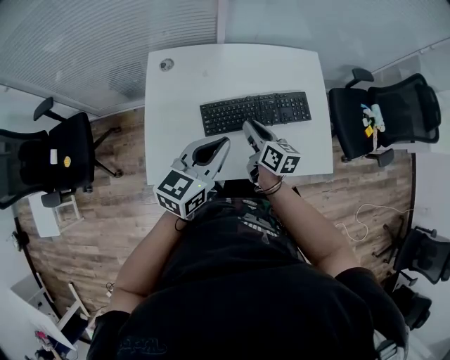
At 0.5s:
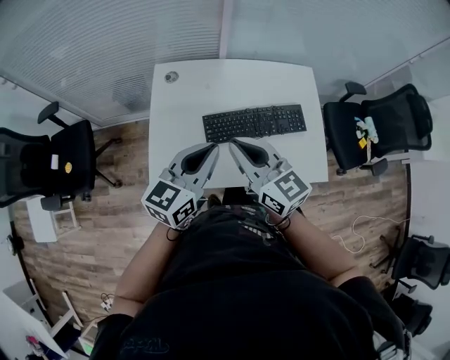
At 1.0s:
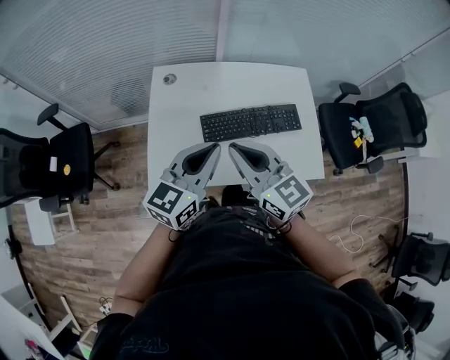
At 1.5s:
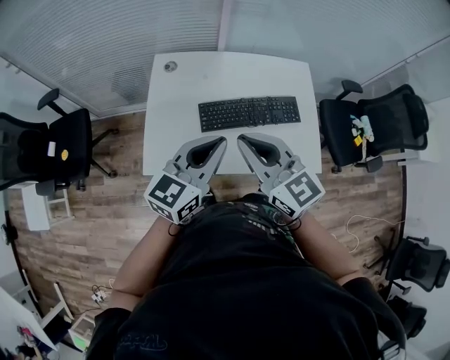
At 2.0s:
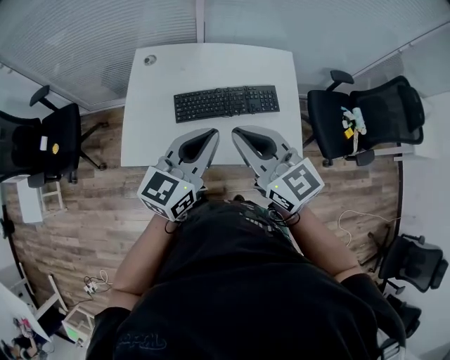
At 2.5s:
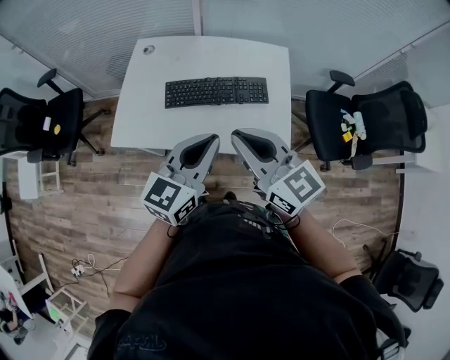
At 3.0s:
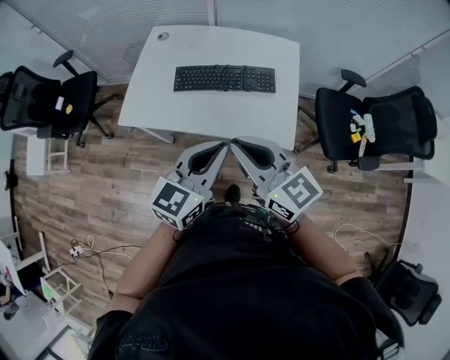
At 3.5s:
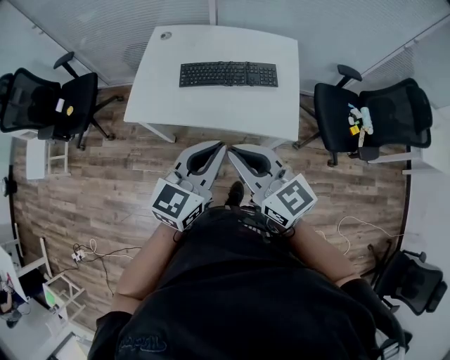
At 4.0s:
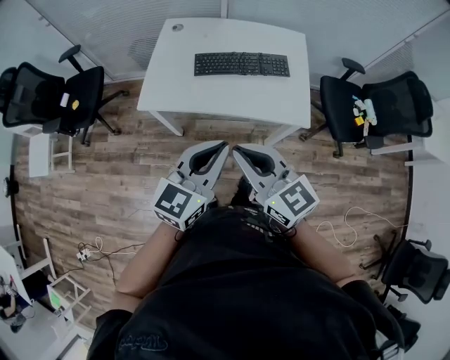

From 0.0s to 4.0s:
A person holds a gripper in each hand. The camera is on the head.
From 0.0s to 2.0s: The right gripper heads upward and backward, covering roughly 30 cm, and rolls counterclockwise, seen from behind, by roughly 40 degrees, while the left gripper shifts some 15 cm to the right, upward and backward.
From 2.0s to 4.0s: Both grippers move backward, some 25 cm.

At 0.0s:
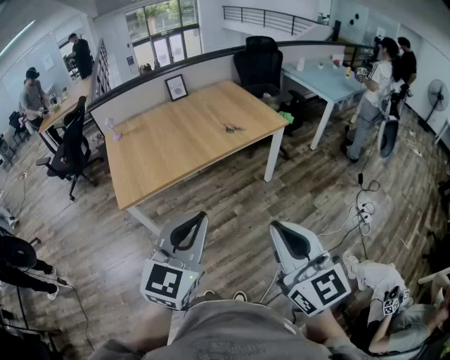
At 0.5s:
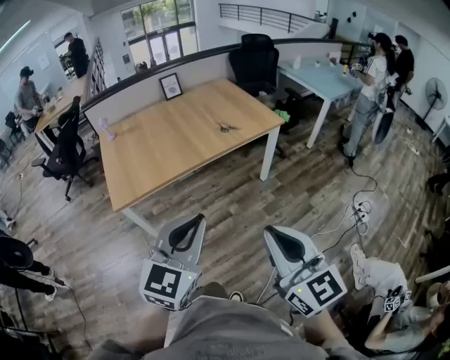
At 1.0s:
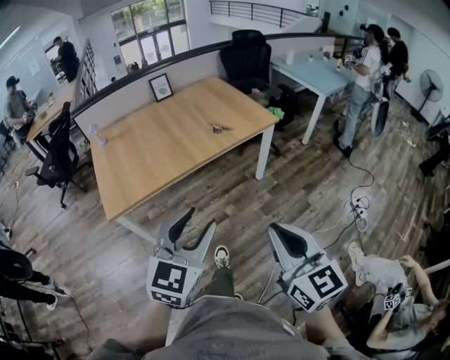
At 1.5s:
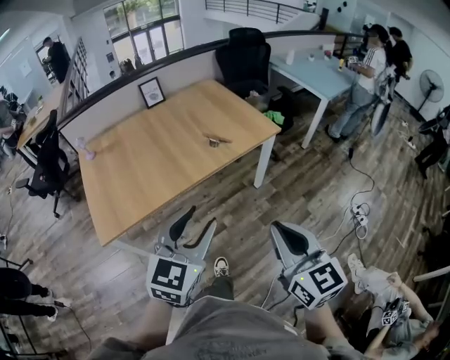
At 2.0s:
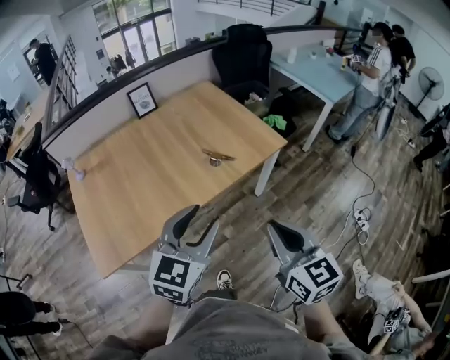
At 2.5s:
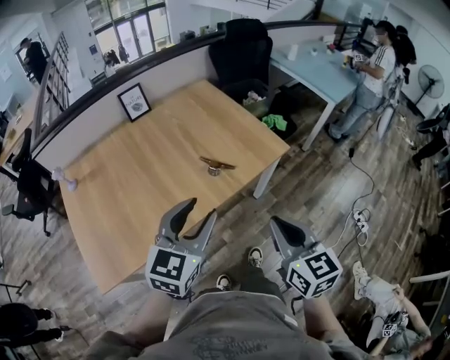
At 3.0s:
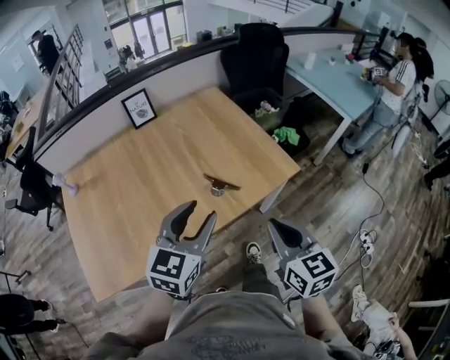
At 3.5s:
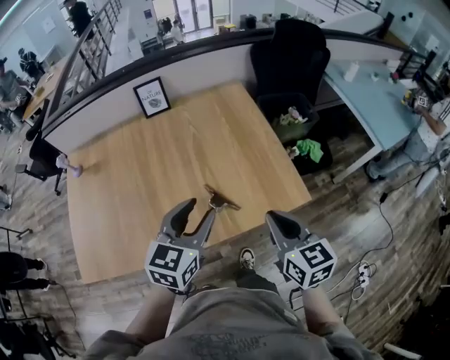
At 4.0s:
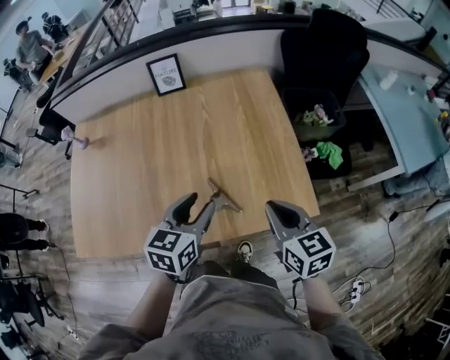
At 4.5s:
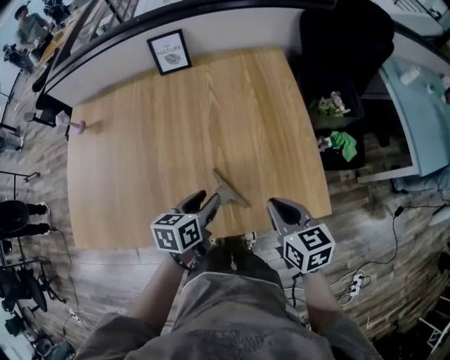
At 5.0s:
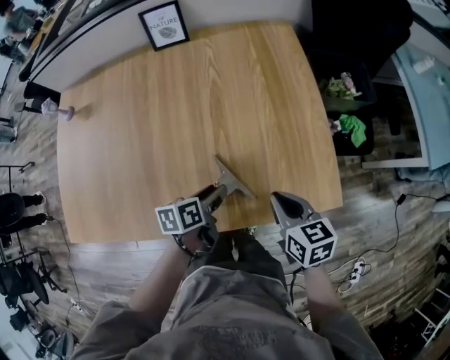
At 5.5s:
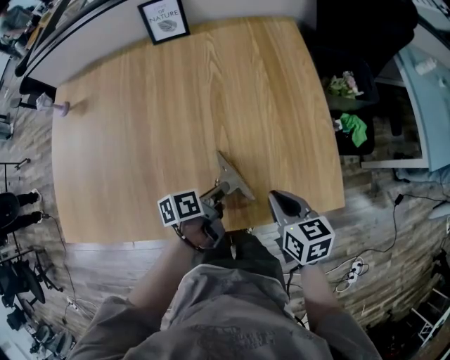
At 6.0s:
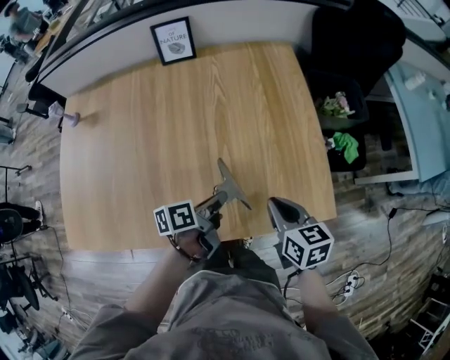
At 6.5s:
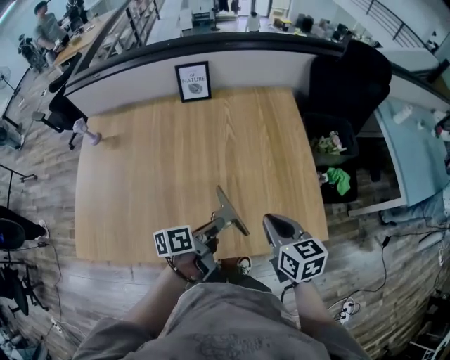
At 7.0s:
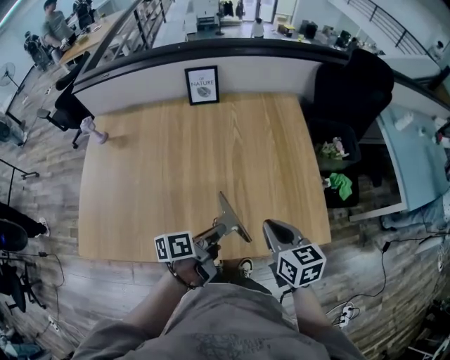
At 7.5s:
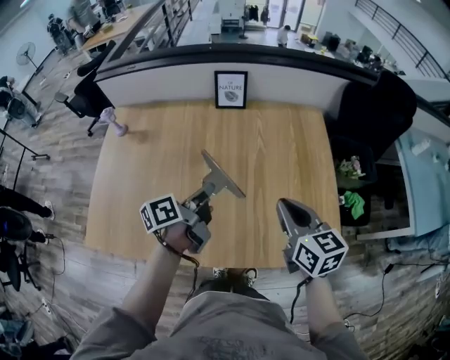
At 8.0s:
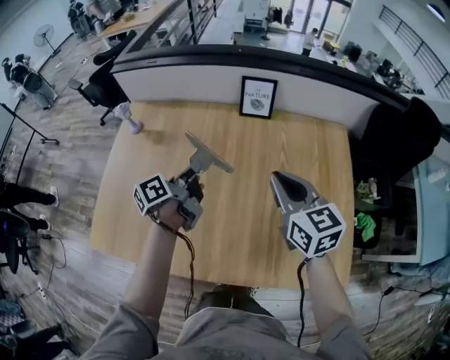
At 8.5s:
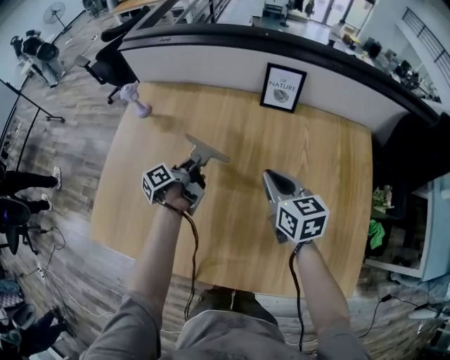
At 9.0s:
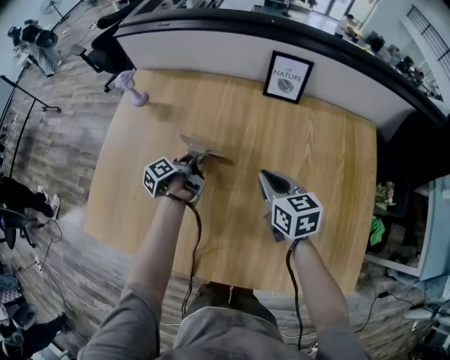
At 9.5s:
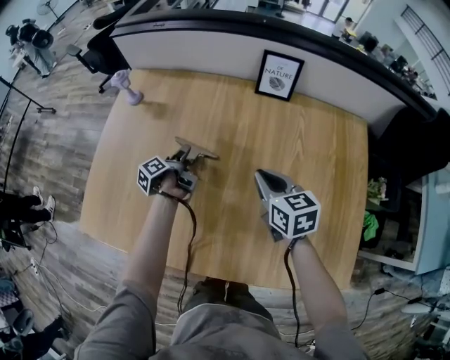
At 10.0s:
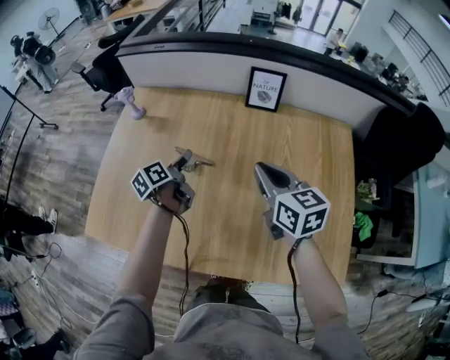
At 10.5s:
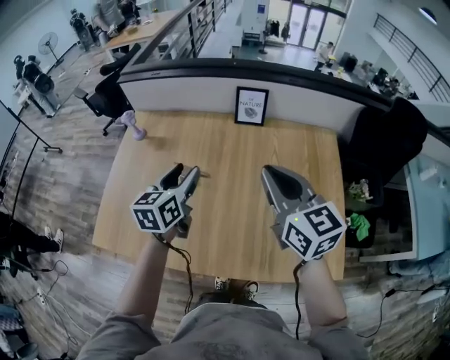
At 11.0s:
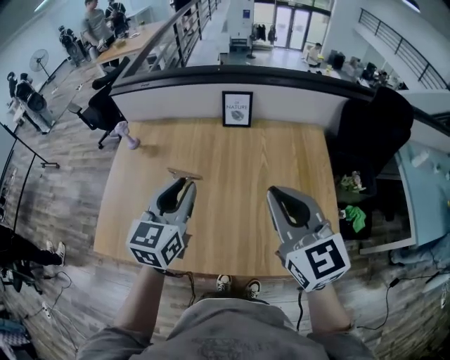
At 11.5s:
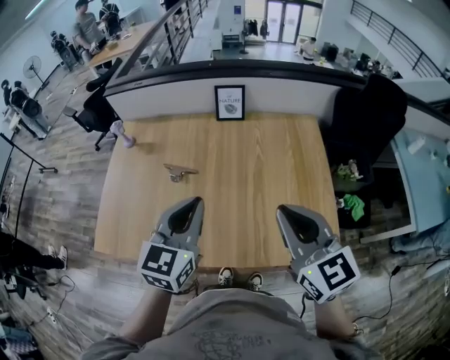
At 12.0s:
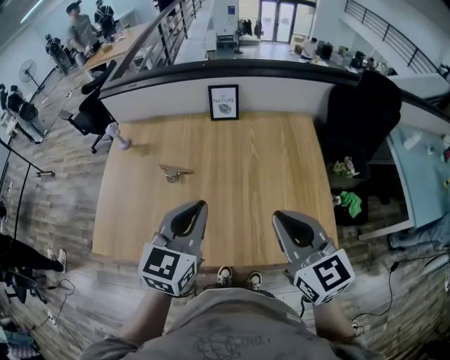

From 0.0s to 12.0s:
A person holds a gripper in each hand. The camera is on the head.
From 0.0s to 2.0s: Both grippers move forward, approximately 40 cm. The left gripper opens up.
From 2.0s to 4.0s: The left gripper changes place by about 40 cm, and swivels approximately 40 degrees, while the right gripper shifts by some 50 cm, and rotates about 30 degrees.
From 4.0s to 6.0s: The two grippers go approximately 15 cm downward. The left gripper rolls counterclockwise, seen from behind, by approximately 50 degrees, and closes.
From 6.0s to 8.0s: The right gripper heads to the left, upward and forward, covering some 35 cm, and changes its angle by roughly 30 degrees; the left gripper heads to the left, forward and upward, covering roughly 40 cm, and rotates some 40 degrees.
From 8.0s to 10.0s: The left gripper shifts some 10 cm downward and to the left, and opens its fingers; the right gripper shifts approximately 5 cm to the left, and moves approximately 15 cm downward and comes back.
From 10.0s to 12.0s: The grippers both shift backward, upward and to the right by about 35 cm. The left gripper twists some 70 degrees clockwise, seen from behind, and closes its fingers.

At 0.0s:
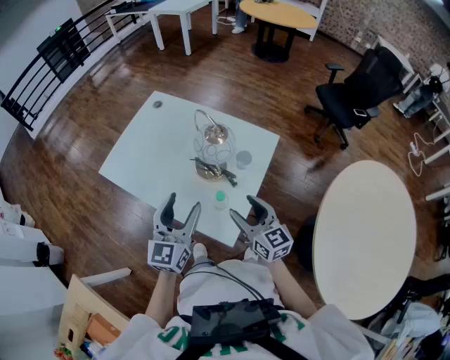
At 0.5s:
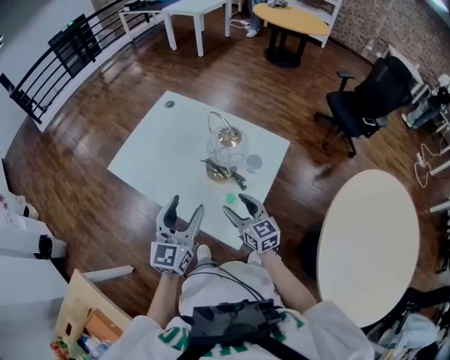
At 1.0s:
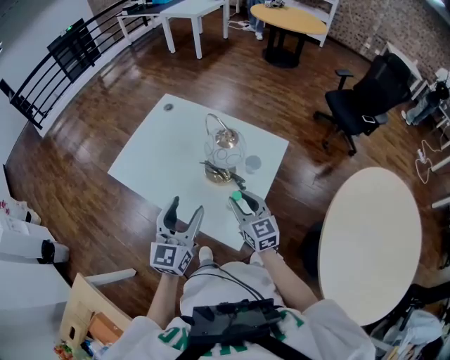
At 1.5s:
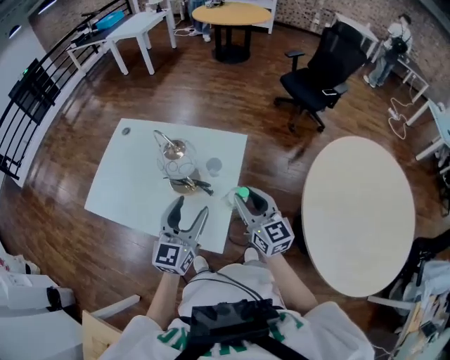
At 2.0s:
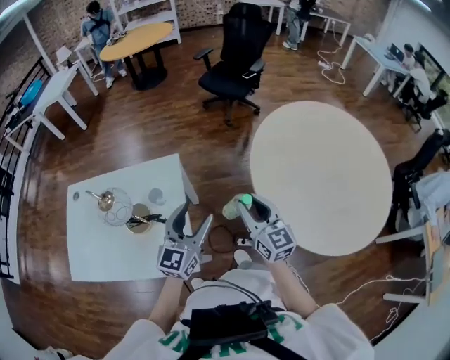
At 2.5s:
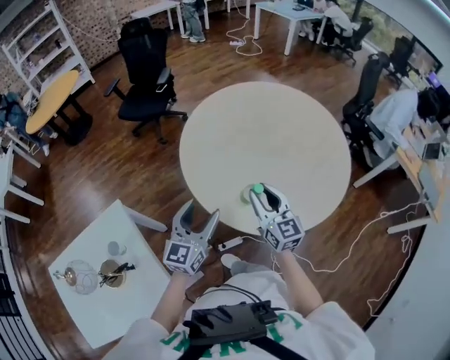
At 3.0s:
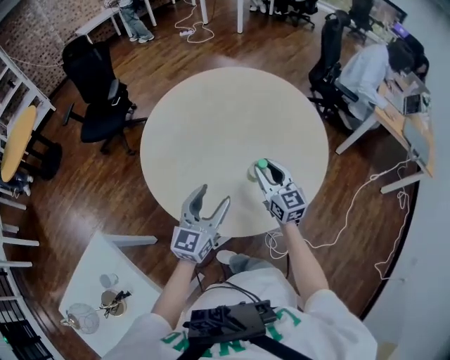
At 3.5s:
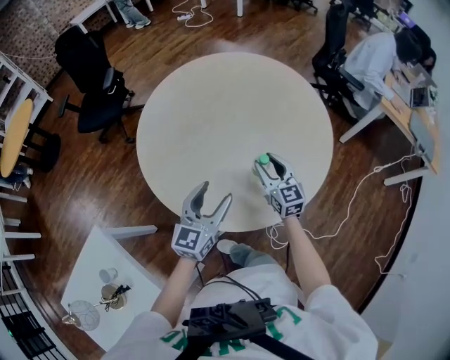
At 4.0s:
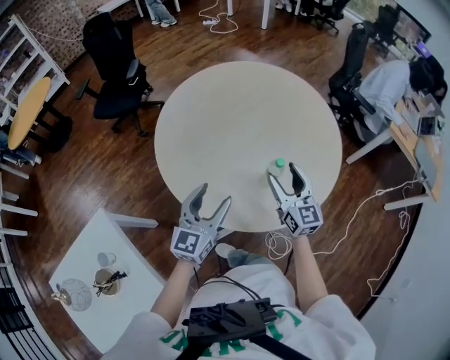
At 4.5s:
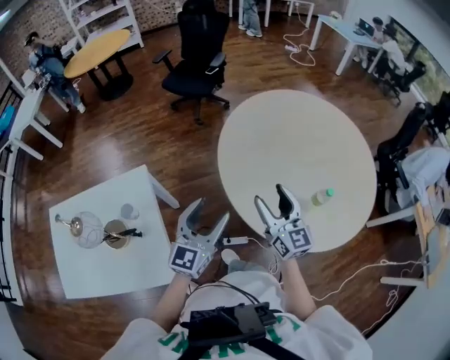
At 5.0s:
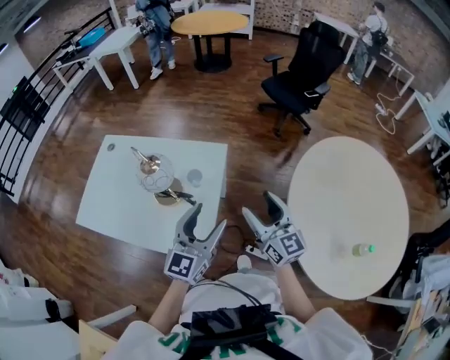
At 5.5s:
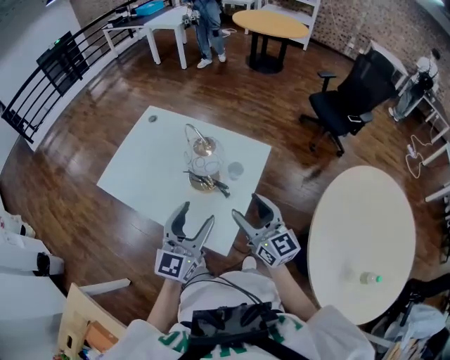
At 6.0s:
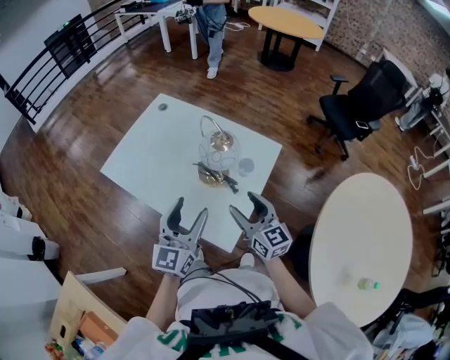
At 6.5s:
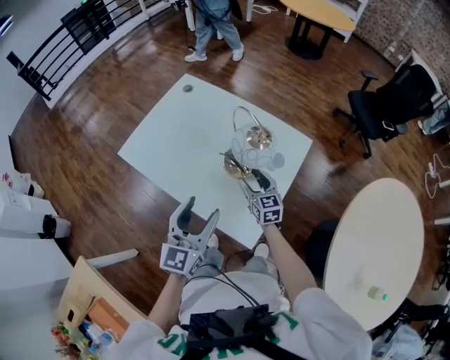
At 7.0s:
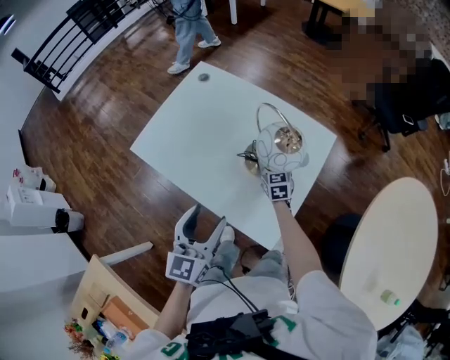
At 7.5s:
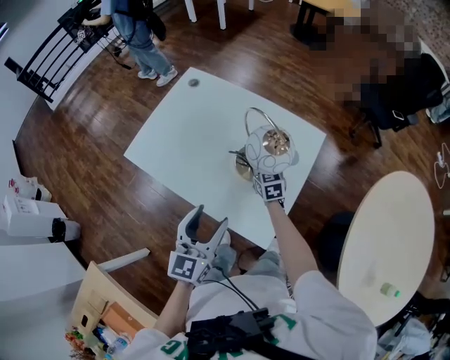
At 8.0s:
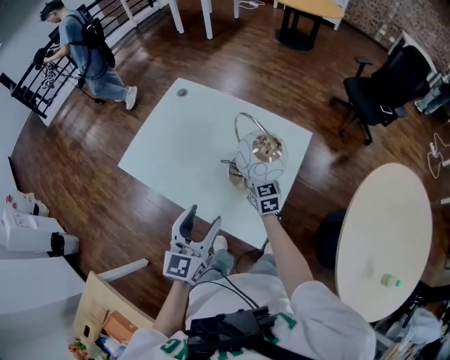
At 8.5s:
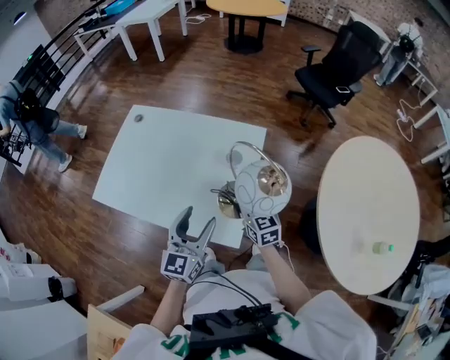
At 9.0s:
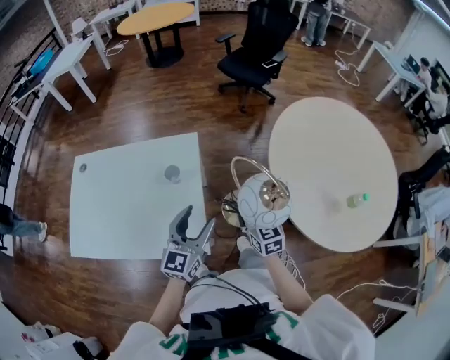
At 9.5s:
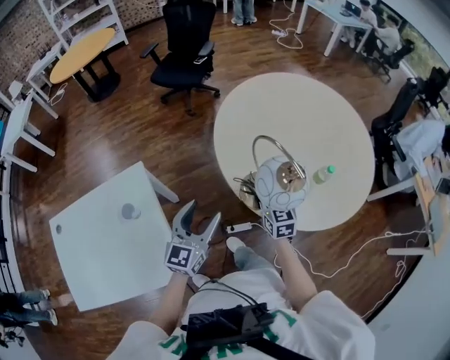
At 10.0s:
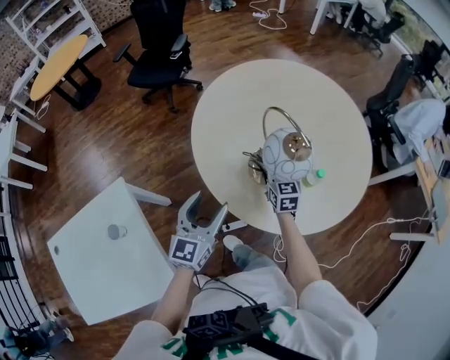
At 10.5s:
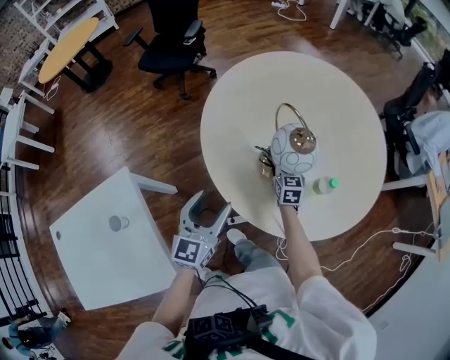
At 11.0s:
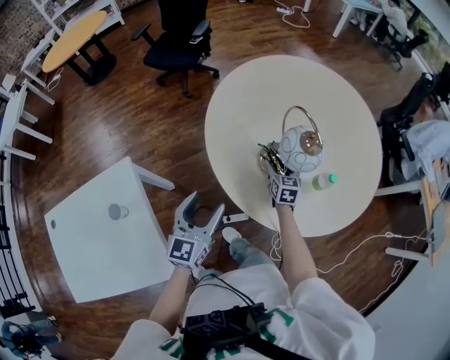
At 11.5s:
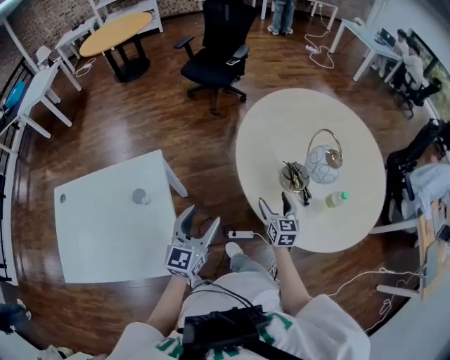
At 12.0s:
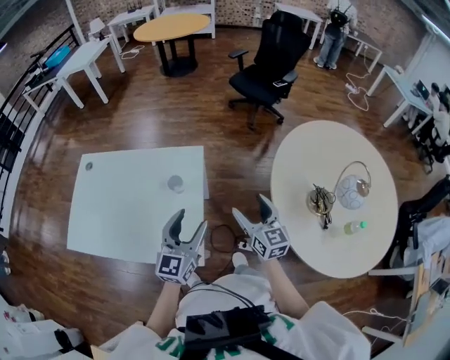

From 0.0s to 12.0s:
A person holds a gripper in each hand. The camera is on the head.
From 0.0s to 2.0s: The right gripper moves some 30 cm, and swivels approximately 40 degrees. The left gripper moves some 30 cm, and swivels approximately 40 degrees.
From 2.0s to 4.0s: The right gripper moves about 50 cm, rotates about 40 degrees, and opens. The left gripper ends up about 40 cm from where it was, and changes its angle by some 40 degrees.
From 4.0s to 6.0s: The two grippers travel together, about 70 cm. The right gripper changes its angle by roughly 90 degrees; the left gripper turns by roughly 80 degrees.
From 6.0s to 8.0s: The right gripper goes about 20 cm forward, downward and to the left, and closes, while the left gripper heads to the left, covering approximately 5 cm.
From 8.0s to 10.0s: Both grippers are carried approximately 70 cm. The left gripper turns by some 70 degrees, while the right gripper turns by roughly 70 degrees.
From 10.0s to 12.0s: The left gripper moves approximately 35 cm, and swivels approximately 40 degrees, while the right gripper ends up roughly 40 cm from where it was, rotates approximately 40 degrees, and opens its fingers.
